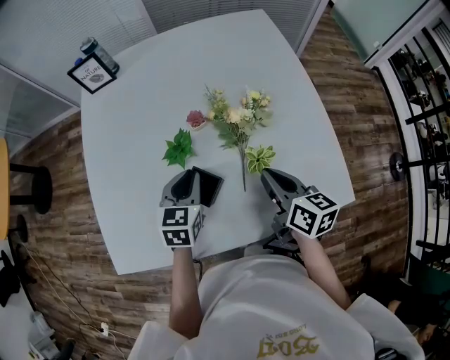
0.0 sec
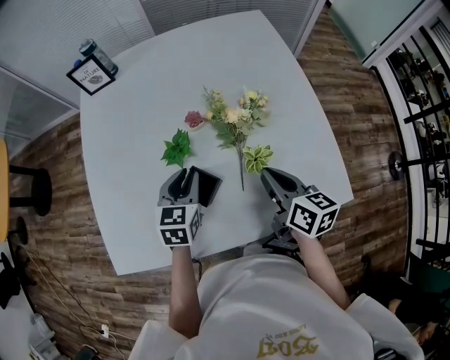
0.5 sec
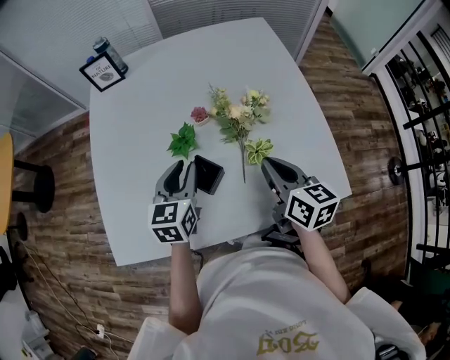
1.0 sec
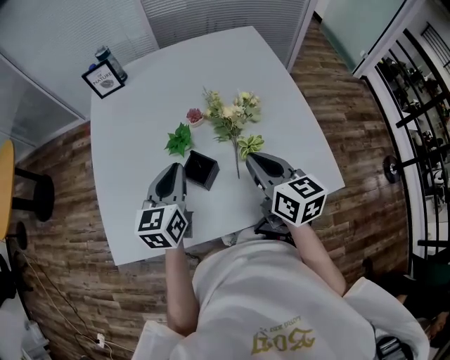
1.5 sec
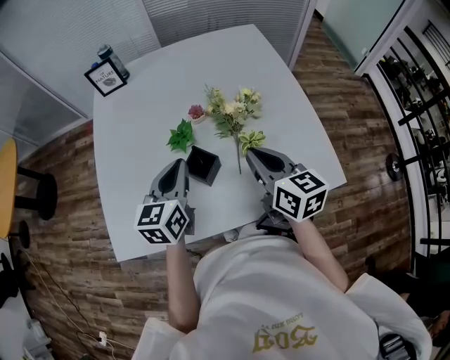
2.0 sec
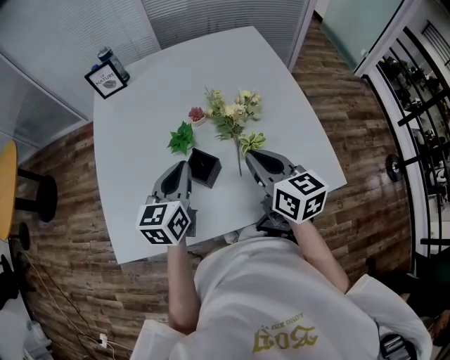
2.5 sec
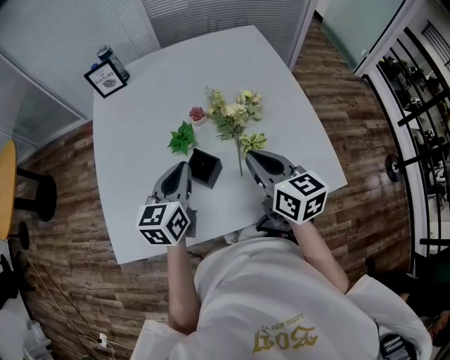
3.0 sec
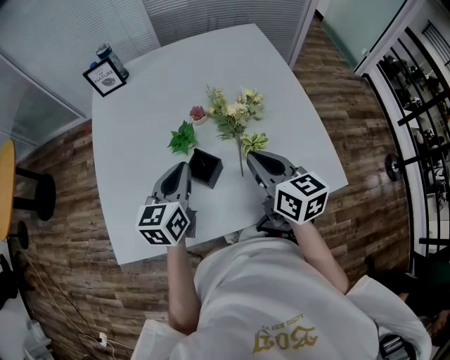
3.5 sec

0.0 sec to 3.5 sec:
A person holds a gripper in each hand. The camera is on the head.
0.0 sec to 2.0 sec: The left gripper is displaced upward and backward by approximately 15 cm, and changes its angle by roughly 20 degrees. Meanwhile the right gripper heads upward, covering roughly 10 cm.
2.0 sec to 3.5 sec: The grippers stay close to where they were, moving slightly.

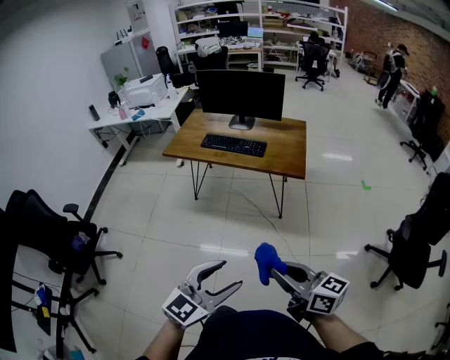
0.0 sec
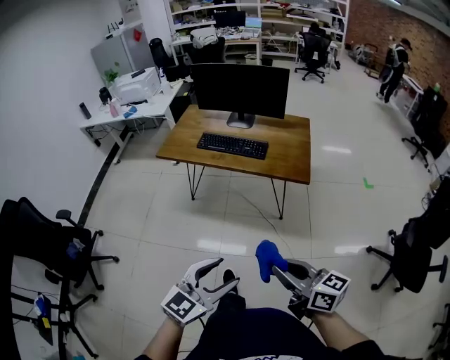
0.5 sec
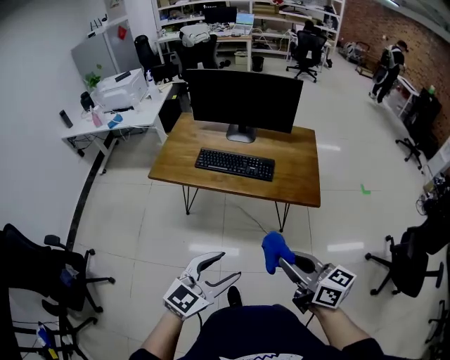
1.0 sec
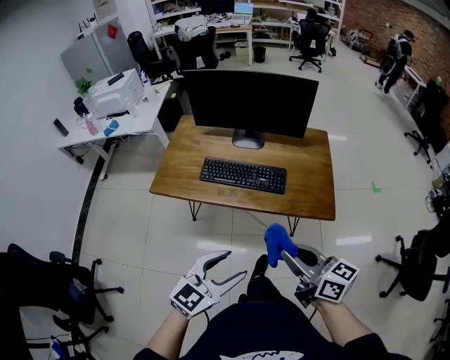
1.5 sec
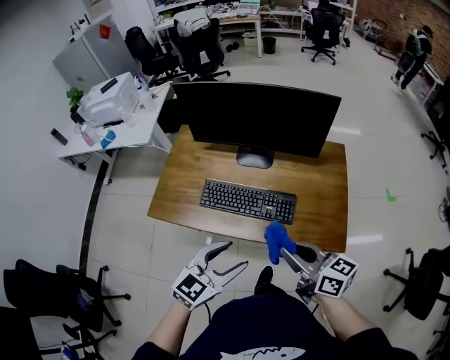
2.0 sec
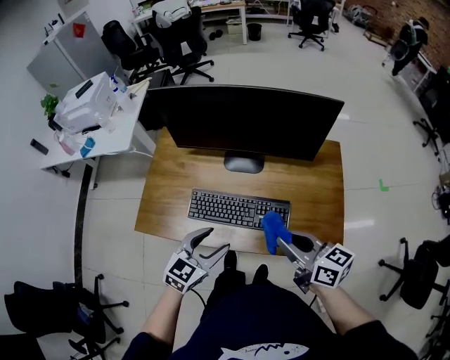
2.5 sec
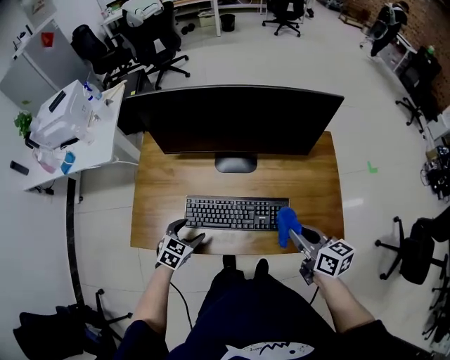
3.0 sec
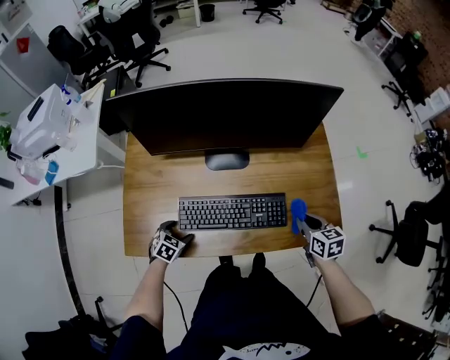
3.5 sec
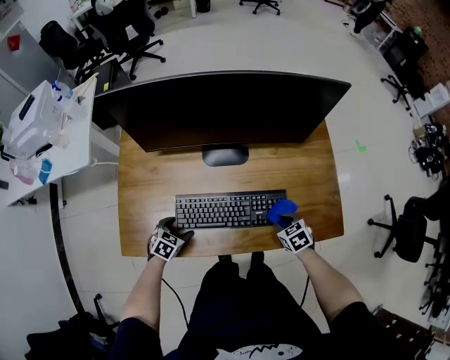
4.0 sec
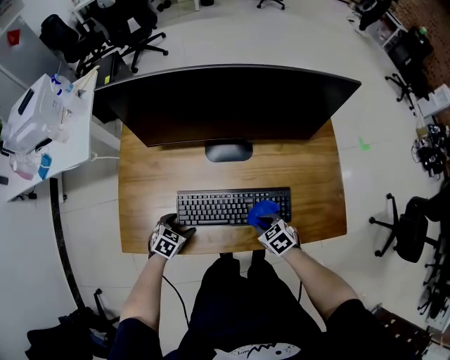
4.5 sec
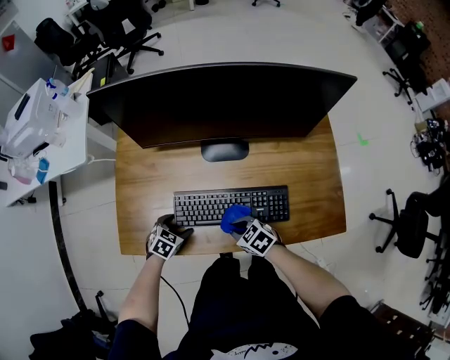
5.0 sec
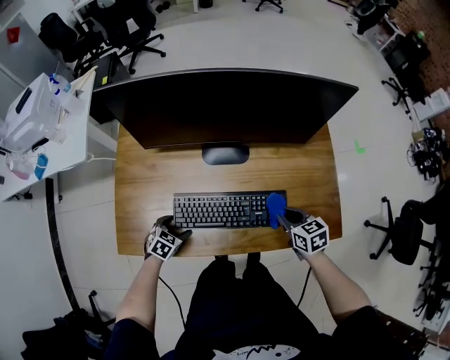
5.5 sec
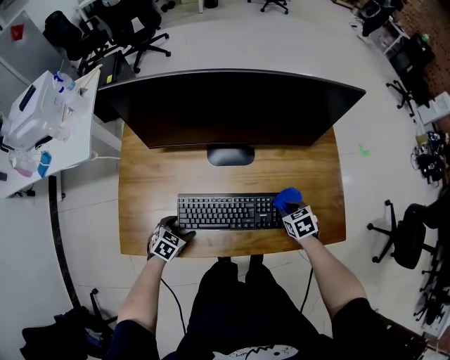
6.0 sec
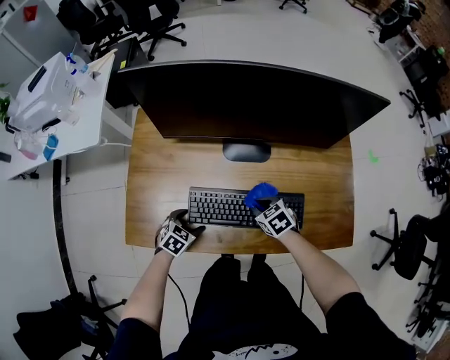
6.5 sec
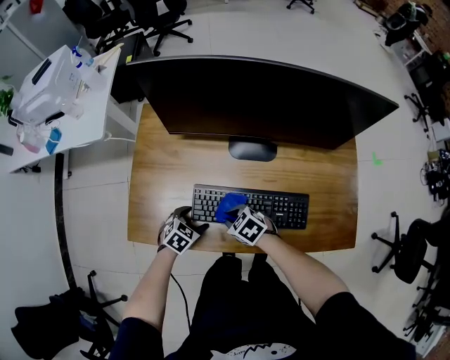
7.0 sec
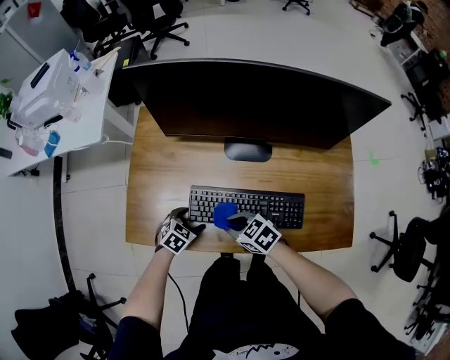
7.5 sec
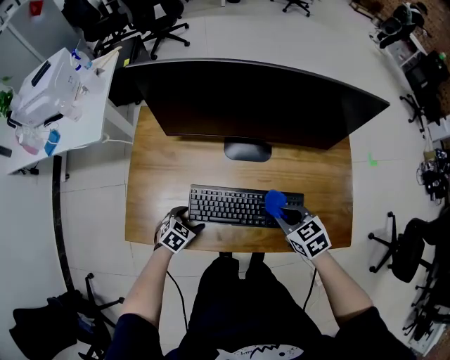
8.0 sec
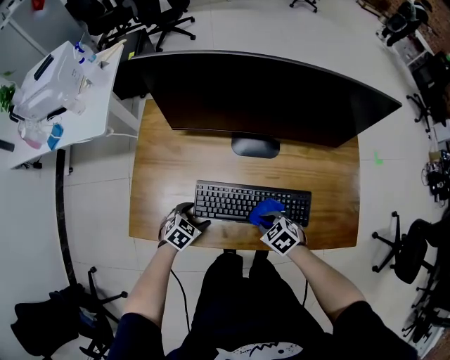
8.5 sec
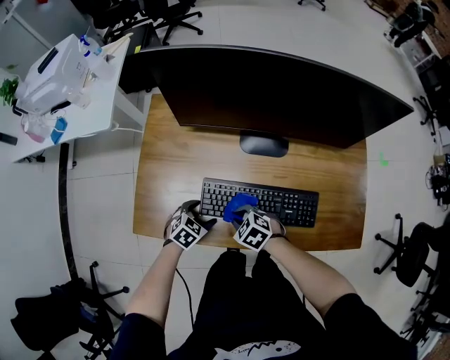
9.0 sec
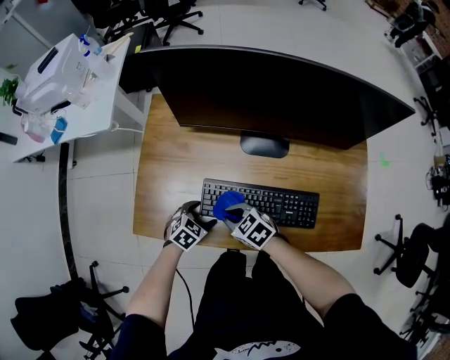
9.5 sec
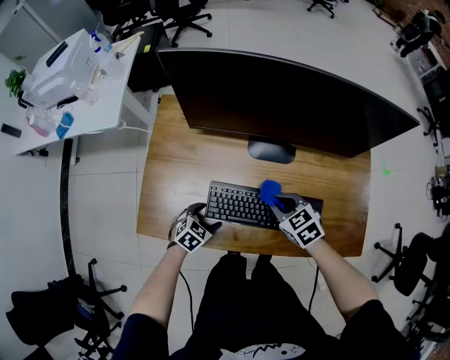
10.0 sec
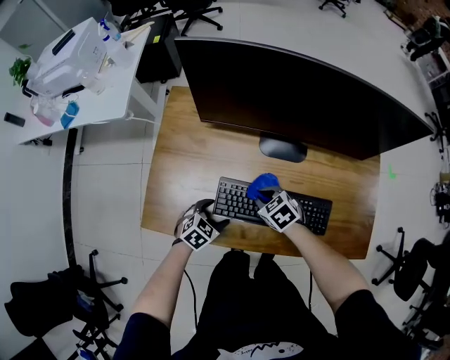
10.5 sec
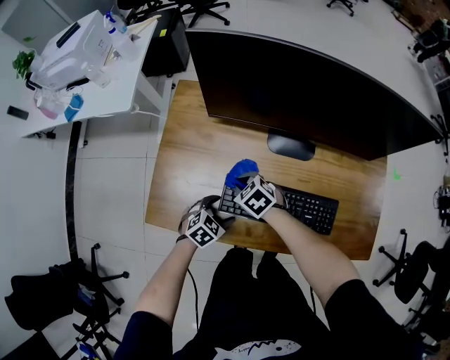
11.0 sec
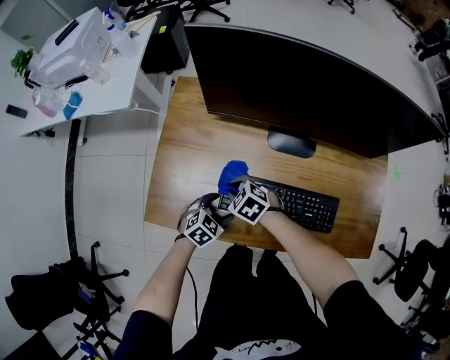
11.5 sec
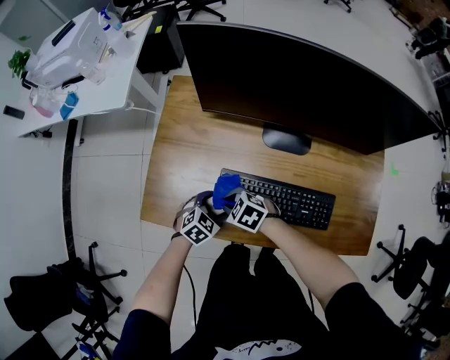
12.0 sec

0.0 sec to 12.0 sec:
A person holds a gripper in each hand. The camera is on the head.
0.0 sec to 2.0 sec: The pair of grippers is taken forward, about 60 cm.
2.0 sec to 4.0 sec: The right gripper goes about 35 cm downward and forward, and angles its fingers downward, by about 50 degrees; the left gripper shifts about 50 cm downward, to the left and forward, and angles its fingers downward, by approximately 40 degrees.
4.0 sec to 6.0 sec: The right gripper goes approximately 5 cm forward, and moves some 20 cm to the left and comes back.
6.0 sec to 8.0 sec: The right gripper moves upward, roughly 10 cm, and changes its angle by some 20 degrees.
8.0 sec to 10.0 sec: The right gripper reaches approximately 10 cm downward, then returns.
10.0 sec to 12.0 sec: The right gripper shifts by about 20 cm, and turns by about 30 degrees.

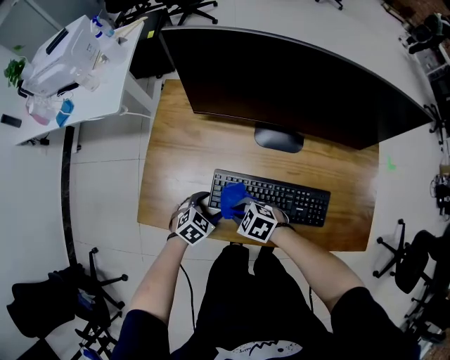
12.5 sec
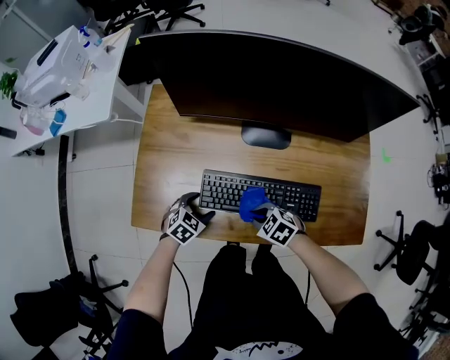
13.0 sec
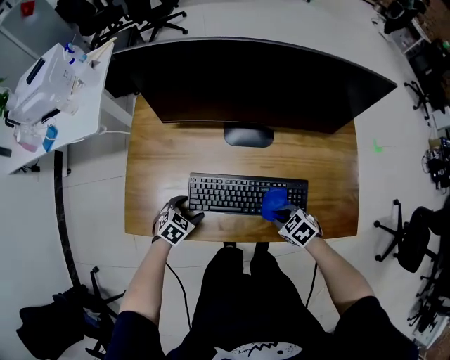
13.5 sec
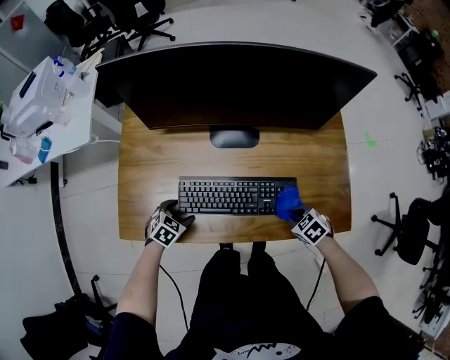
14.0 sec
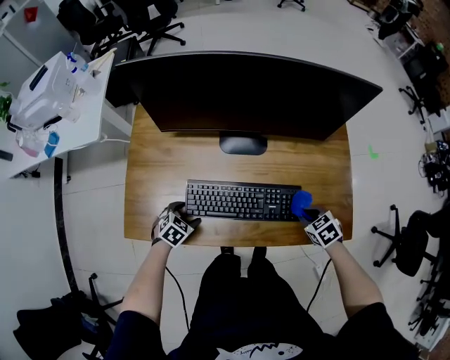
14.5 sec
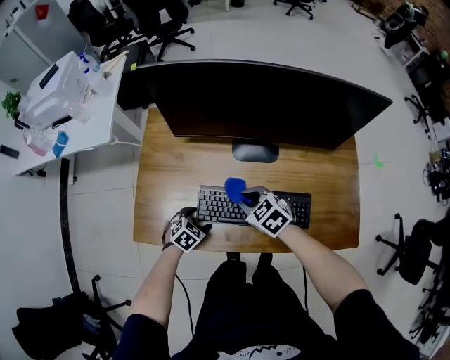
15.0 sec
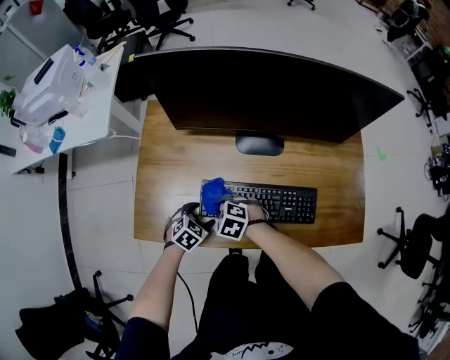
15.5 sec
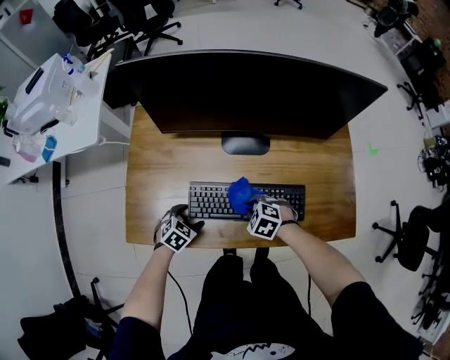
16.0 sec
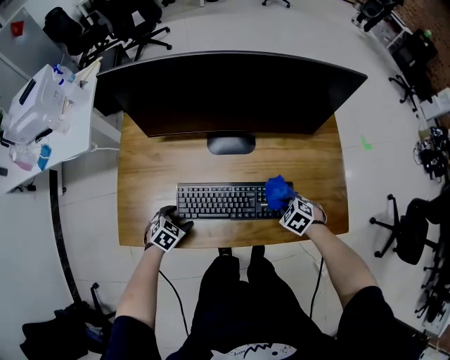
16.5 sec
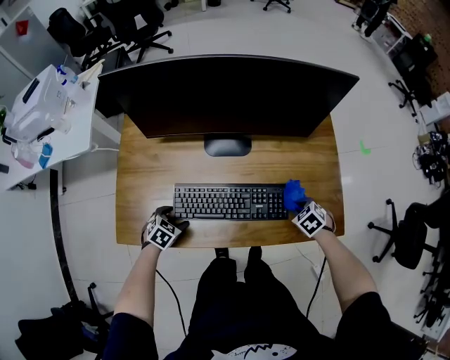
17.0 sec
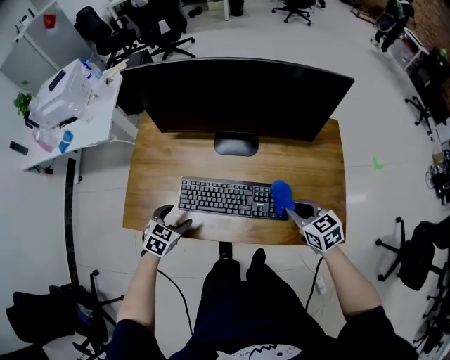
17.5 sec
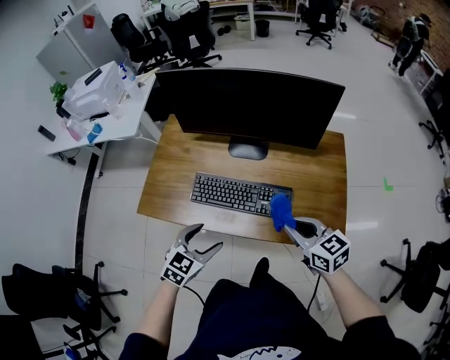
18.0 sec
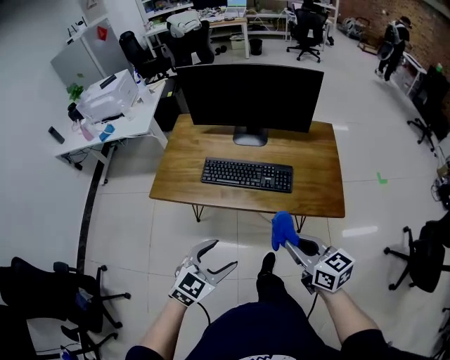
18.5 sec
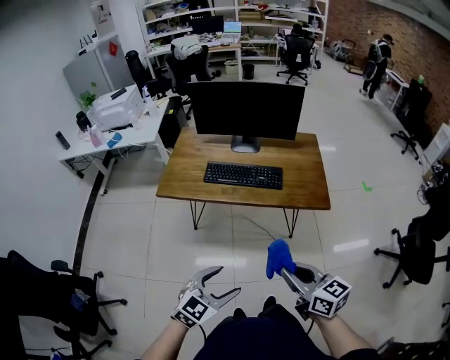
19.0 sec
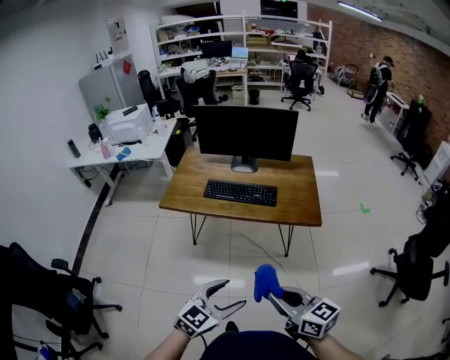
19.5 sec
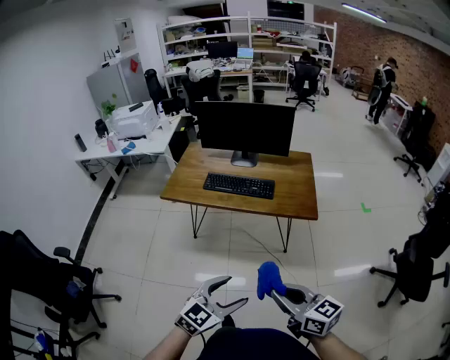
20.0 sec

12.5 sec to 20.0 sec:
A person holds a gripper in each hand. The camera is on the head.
12.5 sec to 14.5 sec: The right gripper shifts by about 35 cm, and turns by approximately 40 degrees.
16.5 sec to 18.0 sec: Both grippers travel together upward, about 25 cm. The right gripper points its fingers some 50 degrees further upward; the left gripper rotates some 30 degrees.
18.0 sec to 20.0 sec: The pair of grippers is taken backward, about 50 cm.

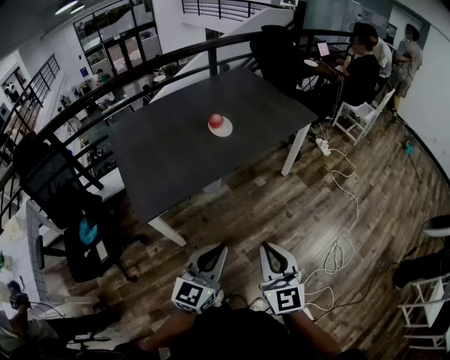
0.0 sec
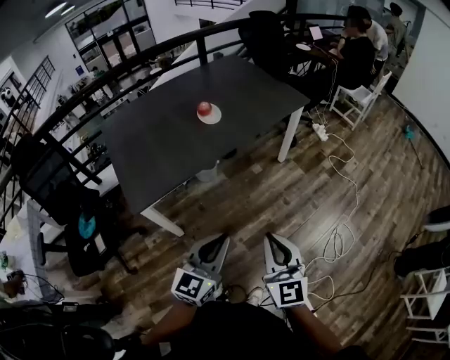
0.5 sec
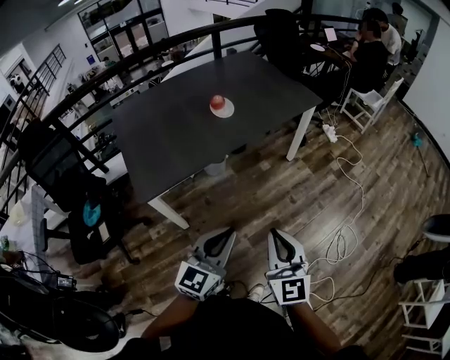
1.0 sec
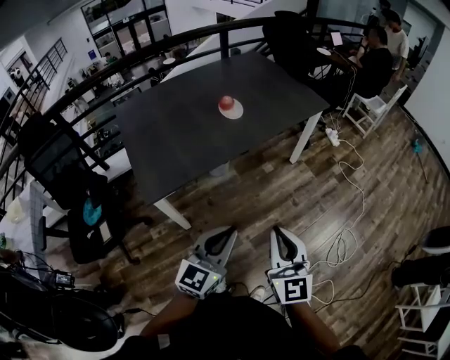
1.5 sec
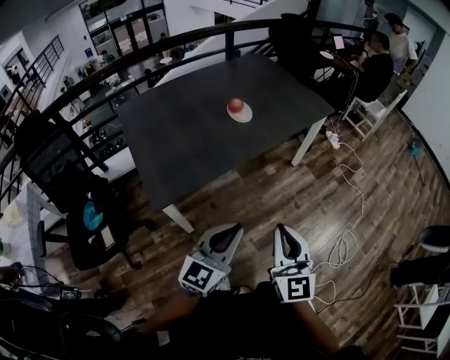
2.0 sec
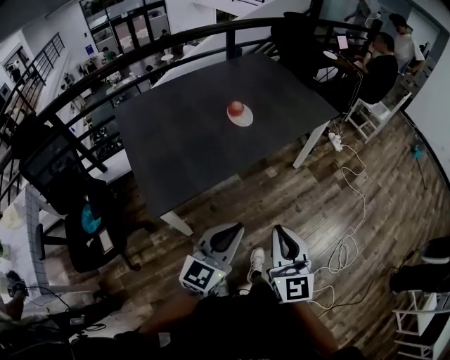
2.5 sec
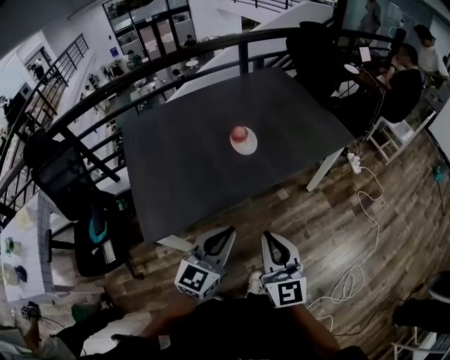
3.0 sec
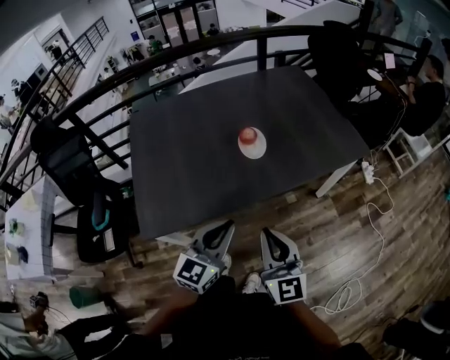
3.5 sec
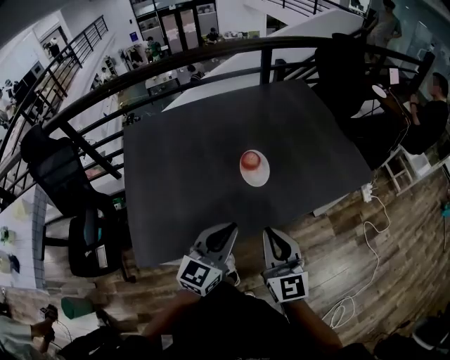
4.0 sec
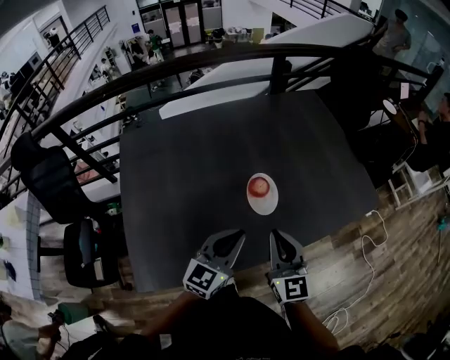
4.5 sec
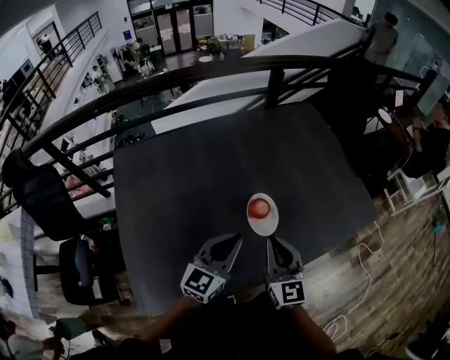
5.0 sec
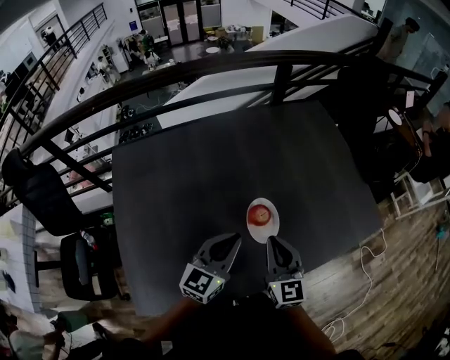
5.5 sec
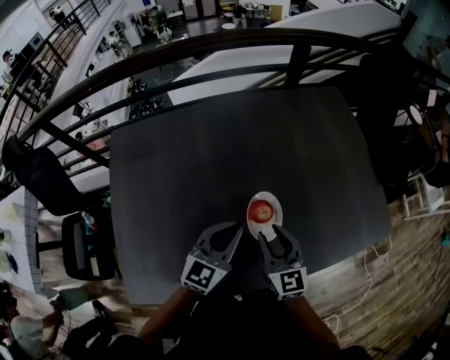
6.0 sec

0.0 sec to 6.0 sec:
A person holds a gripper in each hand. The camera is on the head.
0.0 sec to 2.0 sec: The left gripper shifts by approximately 5 cm. The right gripper ends up roughly 5 cm from where it was.
2.0 sec to 4.0 sec: Both grippers move forward, some 35 cm. The right gripper swivels about 20 degrees.
4.0 sec to 6.0 sec: The grippers both shift forward by about 25 cm.
